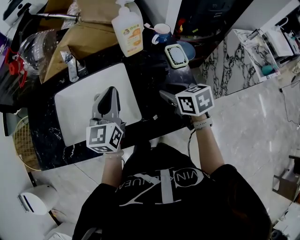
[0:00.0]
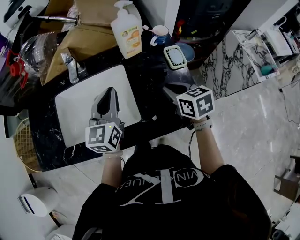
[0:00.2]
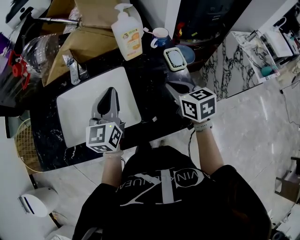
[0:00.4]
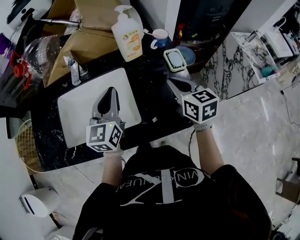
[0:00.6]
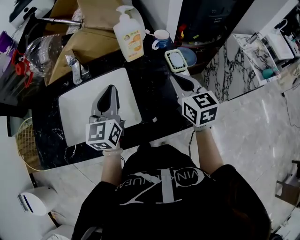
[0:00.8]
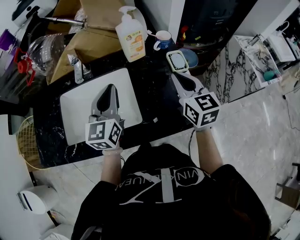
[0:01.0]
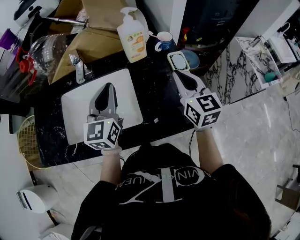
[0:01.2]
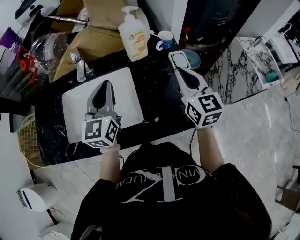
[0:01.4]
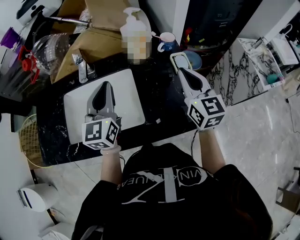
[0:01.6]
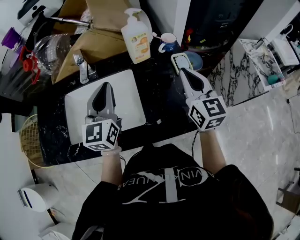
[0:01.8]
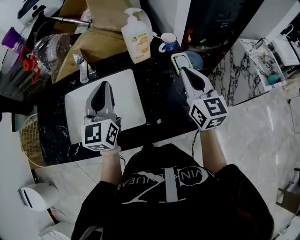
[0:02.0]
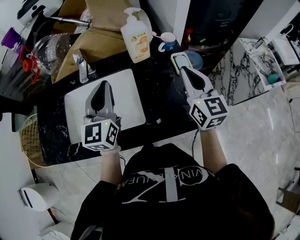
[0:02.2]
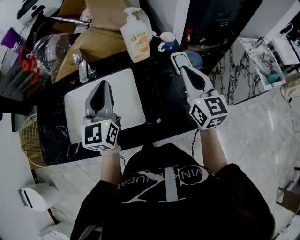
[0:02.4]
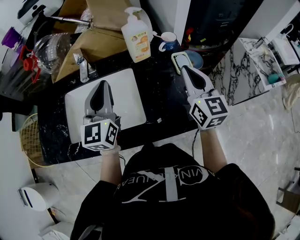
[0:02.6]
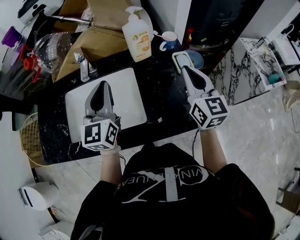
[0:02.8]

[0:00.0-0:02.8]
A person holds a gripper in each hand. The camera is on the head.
0:00.0 to 0:01.4: The right gripper heads upward, covering about 15 cm, tips its fingers upward by some 30 degrees, and closes; the left gripper goes some 5 cm upward.
0:01.4 to 0:02.8: The grippers make only small movements.

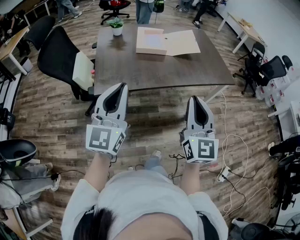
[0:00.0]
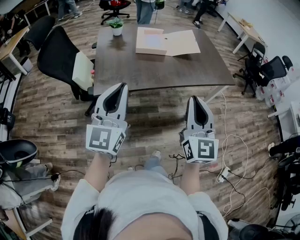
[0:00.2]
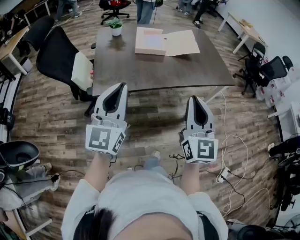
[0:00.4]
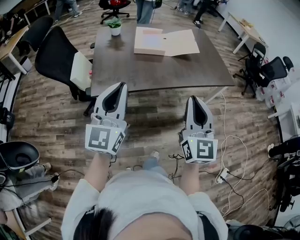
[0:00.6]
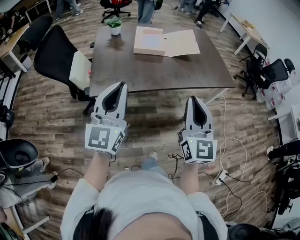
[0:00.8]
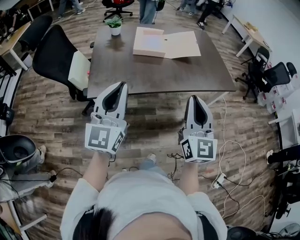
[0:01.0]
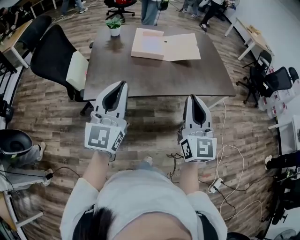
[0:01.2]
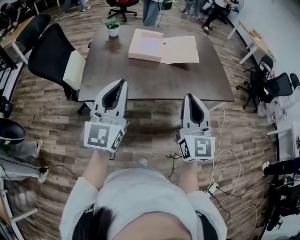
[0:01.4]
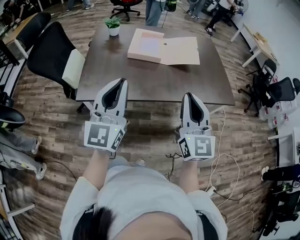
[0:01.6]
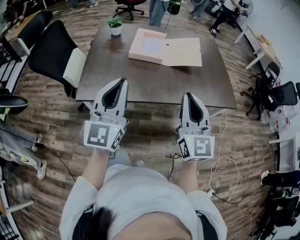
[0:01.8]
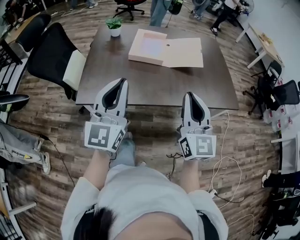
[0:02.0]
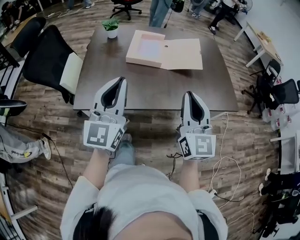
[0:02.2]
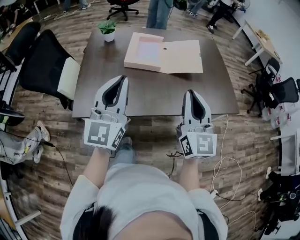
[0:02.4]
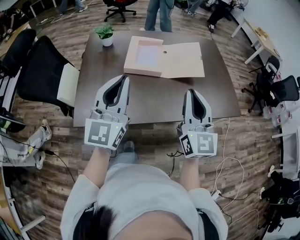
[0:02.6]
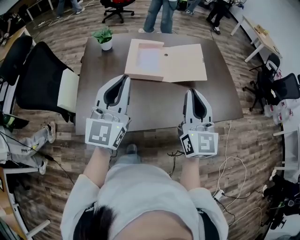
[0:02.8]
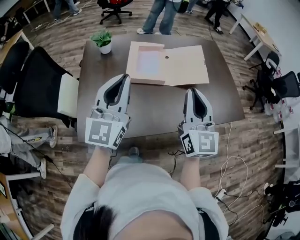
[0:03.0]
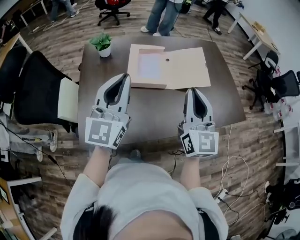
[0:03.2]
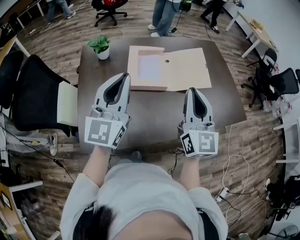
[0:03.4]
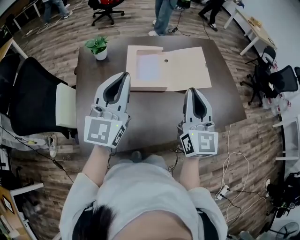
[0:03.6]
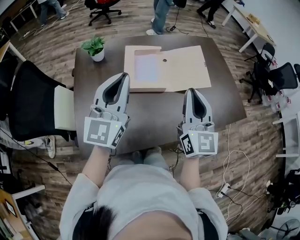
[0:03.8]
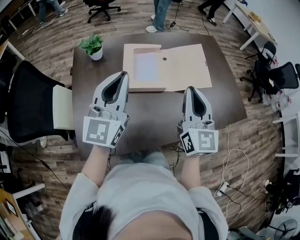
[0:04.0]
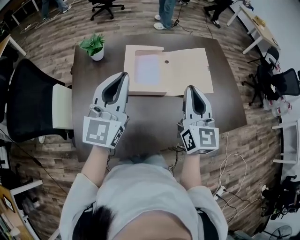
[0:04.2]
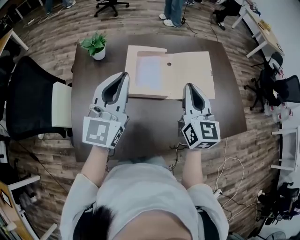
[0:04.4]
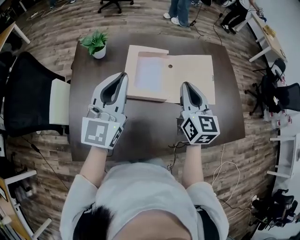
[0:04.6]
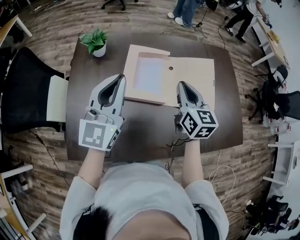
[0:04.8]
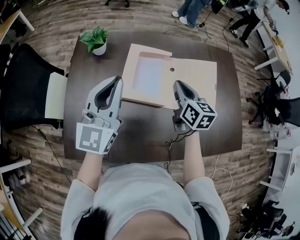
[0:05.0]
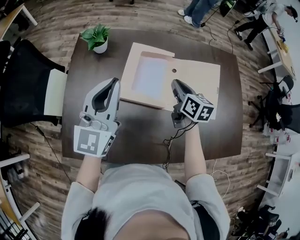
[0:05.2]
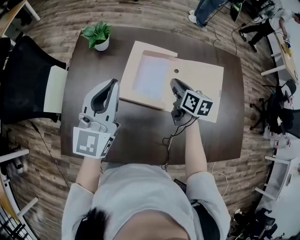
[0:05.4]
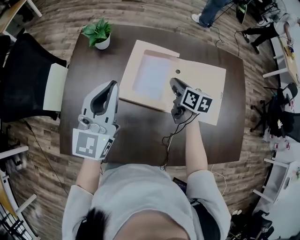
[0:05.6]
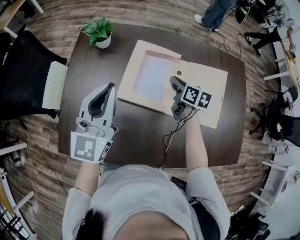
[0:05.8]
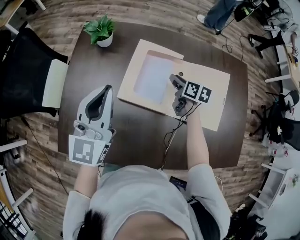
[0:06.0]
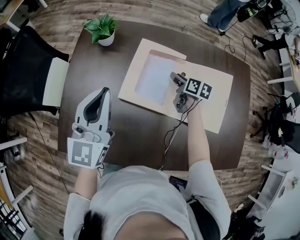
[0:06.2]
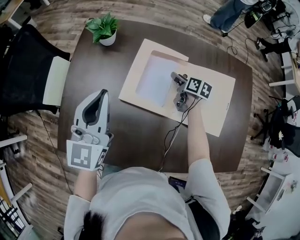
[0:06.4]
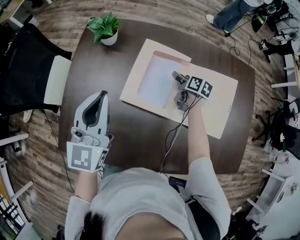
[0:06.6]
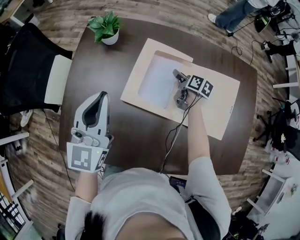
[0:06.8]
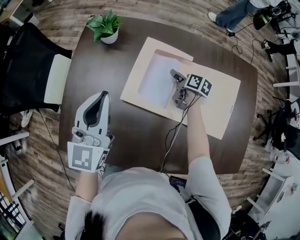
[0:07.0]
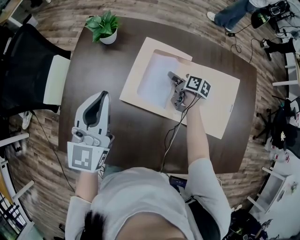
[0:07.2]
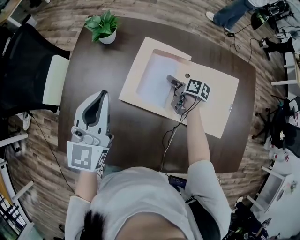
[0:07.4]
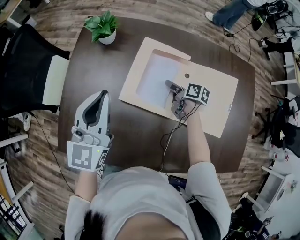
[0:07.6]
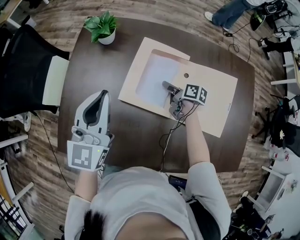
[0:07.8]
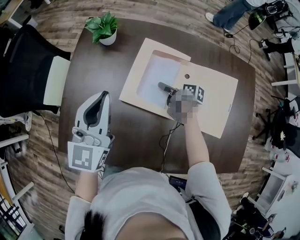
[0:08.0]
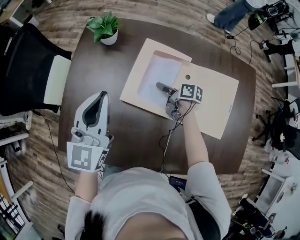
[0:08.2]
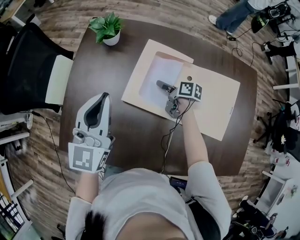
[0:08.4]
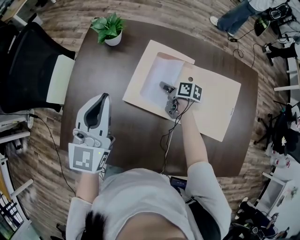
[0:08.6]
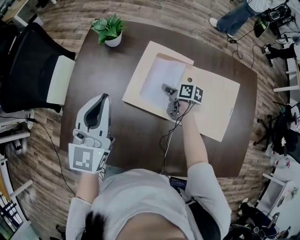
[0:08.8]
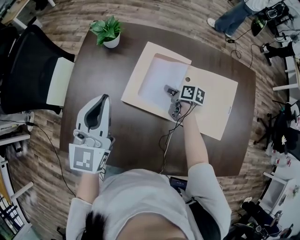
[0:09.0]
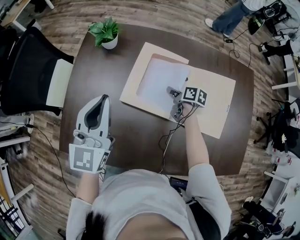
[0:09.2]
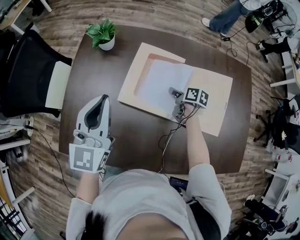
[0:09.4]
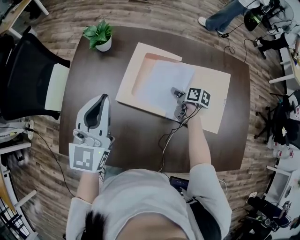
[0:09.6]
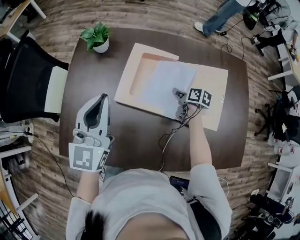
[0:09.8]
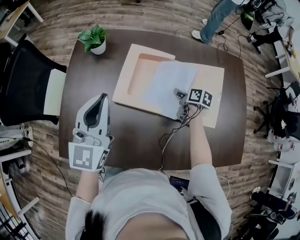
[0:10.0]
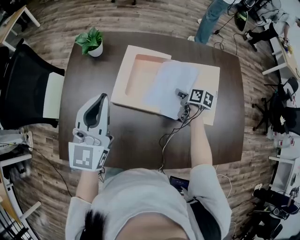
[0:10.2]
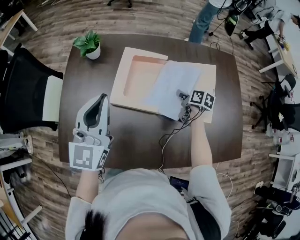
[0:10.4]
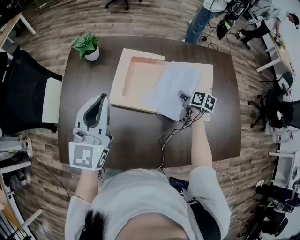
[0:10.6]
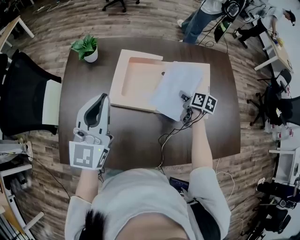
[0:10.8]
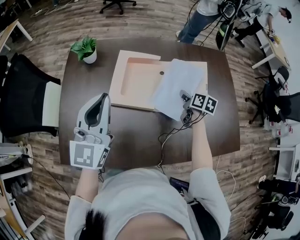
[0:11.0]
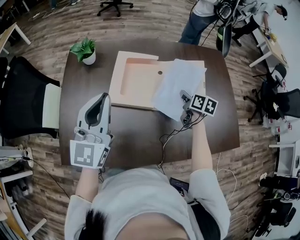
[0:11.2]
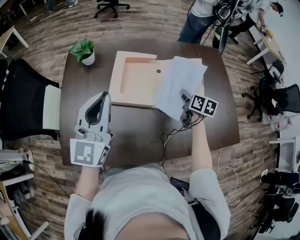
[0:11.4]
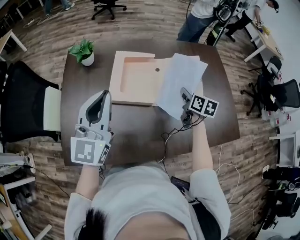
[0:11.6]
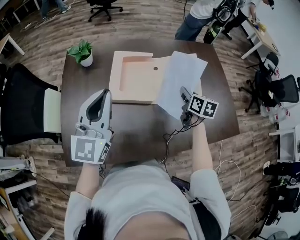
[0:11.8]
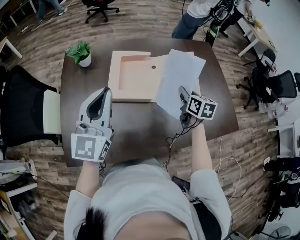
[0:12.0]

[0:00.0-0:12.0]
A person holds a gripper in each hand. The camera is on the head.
0:00.0 to 0:01.6: The grippers both shift forward and to the right by some 20 cm.
0:01.6 to 0:03.0: The grippers both shift forward by some 25 cm.
0:03.0 to 0:04.4: Both grippers move forward, roughly 15 cm.
0:04.4 to 0:06.0: The right gripper shifts approximately 25 cm downward, and tips its fingers downward by roughly 30 degrees. The left gripper heads downward, covering approximately 5 cm.
0:06.0 to 0:07.6: The right gripper heads downward, covering about 5 cm, and changes its angle by some 20 degrees.
0:07.6 to 0:09.0: The right gripper closes.
0:09.0 to 0:10.4: The left gripper moves about 5 cm. Meanwhile the right gripper shifts about 15 cm to the right and backward.
0:10.4 to 0:12.0: The right gripper shifts some 20 cm upward and backward, and swivels roughly 30 degrees. The left gripper goes roughly 5 cm backward.

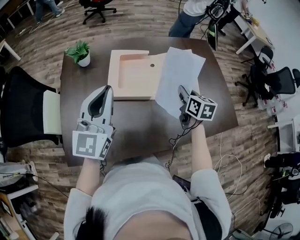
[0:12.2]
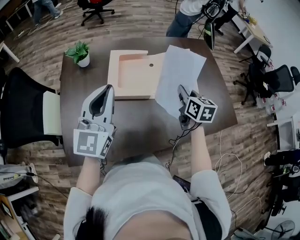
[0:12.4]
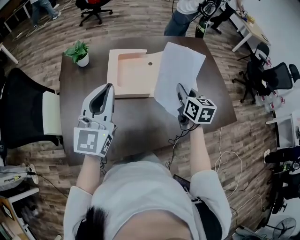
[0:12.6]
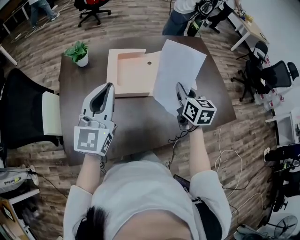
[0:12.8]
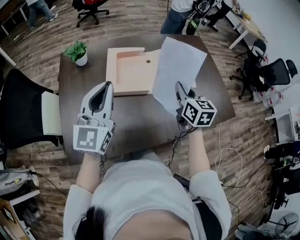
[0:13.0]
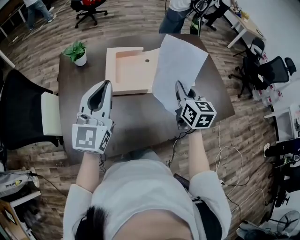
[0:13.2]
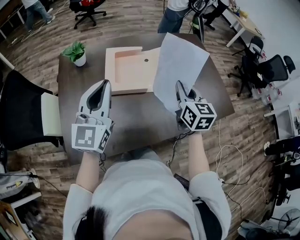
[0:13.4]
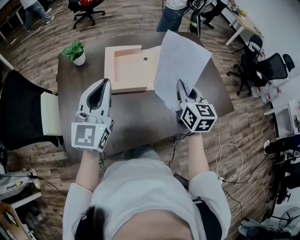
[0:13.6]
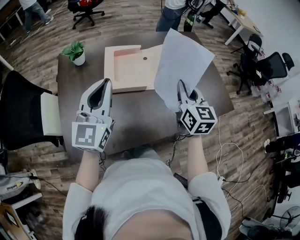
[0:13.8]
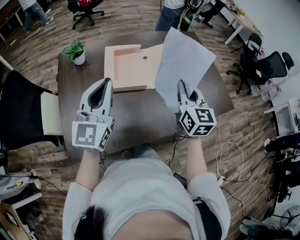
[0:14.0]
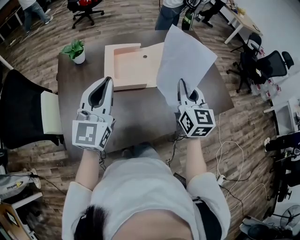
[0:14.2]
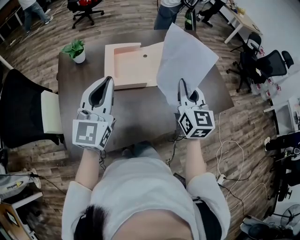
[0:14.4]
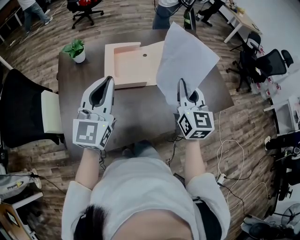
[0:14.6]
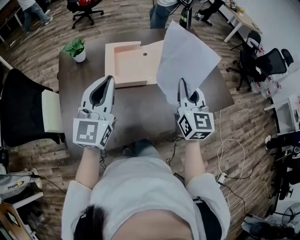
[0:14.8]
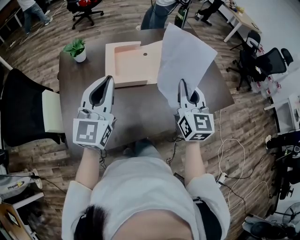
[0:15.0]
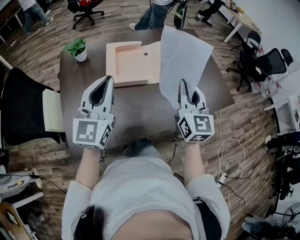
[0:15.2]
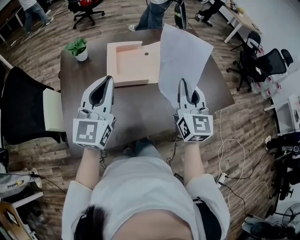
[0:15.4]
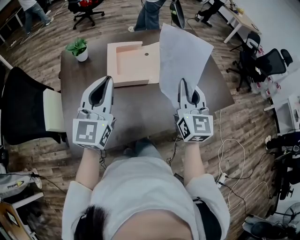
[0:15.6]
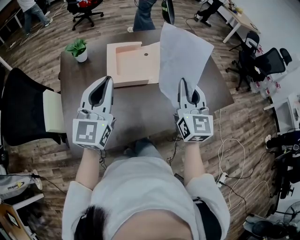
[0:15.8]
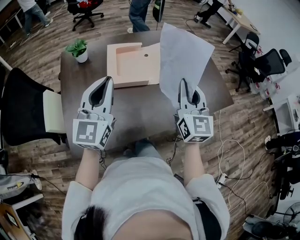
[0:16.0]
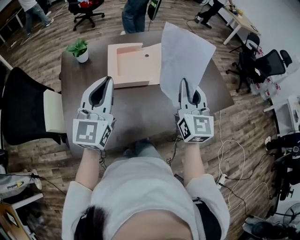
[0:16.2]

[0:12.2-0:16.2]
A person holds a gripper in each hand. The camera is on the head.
0:12.2 to 0:13.6: The right gripper heads backward and upward, covering about 15 cm, and turns by some 20 degrees.
0:13.6 to 0:14.8: The right gripper shifts about 5 cm backward.
0:14.8 to 0:16.2: The grippers make only small movements.

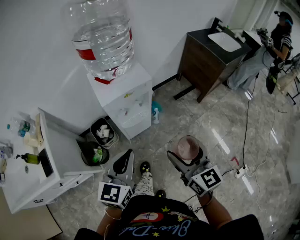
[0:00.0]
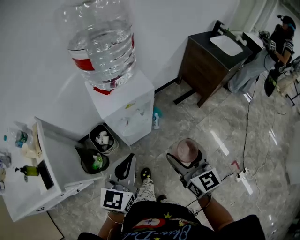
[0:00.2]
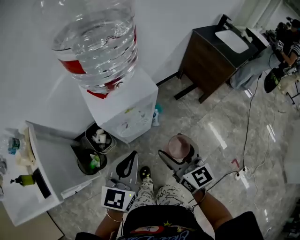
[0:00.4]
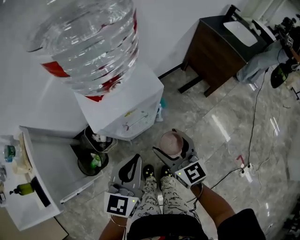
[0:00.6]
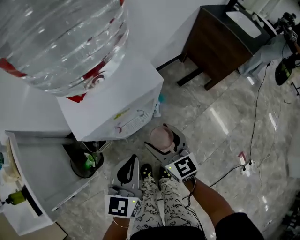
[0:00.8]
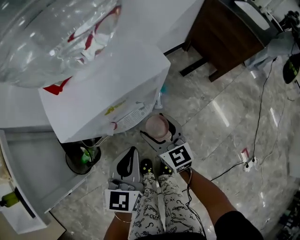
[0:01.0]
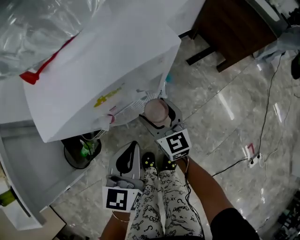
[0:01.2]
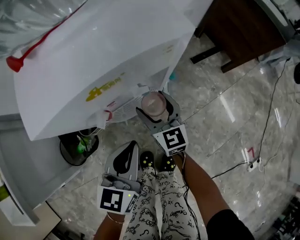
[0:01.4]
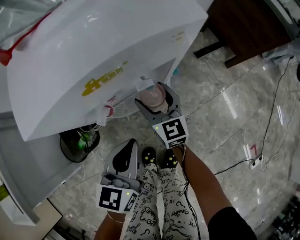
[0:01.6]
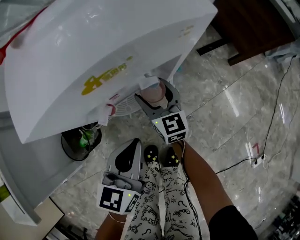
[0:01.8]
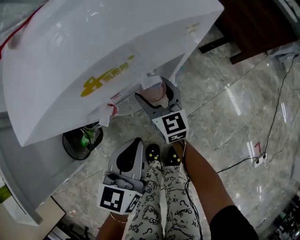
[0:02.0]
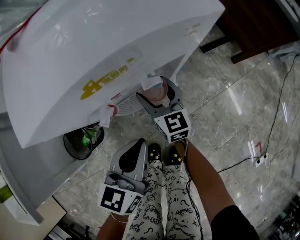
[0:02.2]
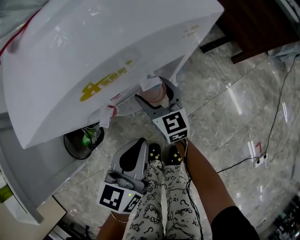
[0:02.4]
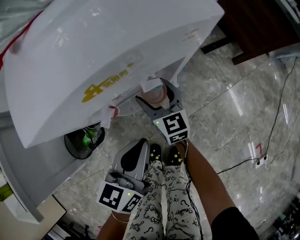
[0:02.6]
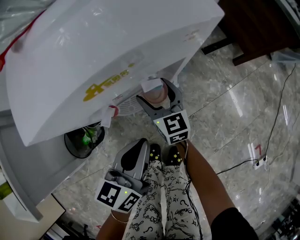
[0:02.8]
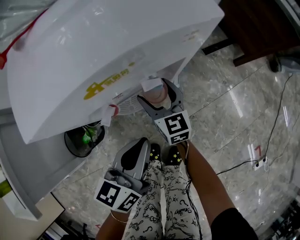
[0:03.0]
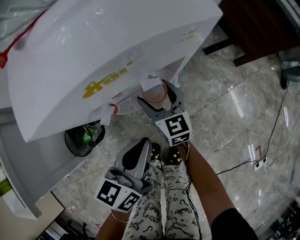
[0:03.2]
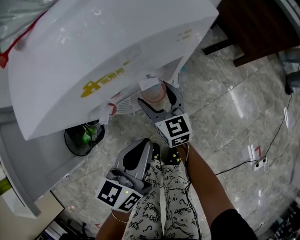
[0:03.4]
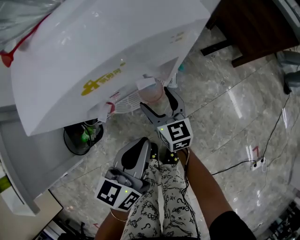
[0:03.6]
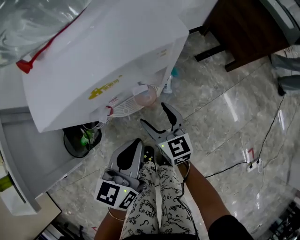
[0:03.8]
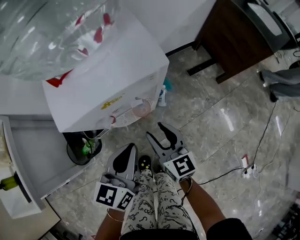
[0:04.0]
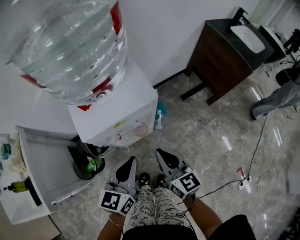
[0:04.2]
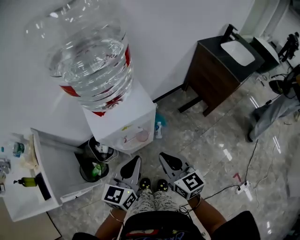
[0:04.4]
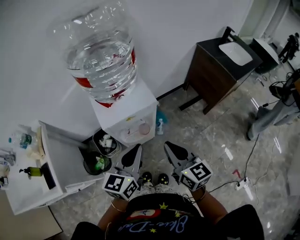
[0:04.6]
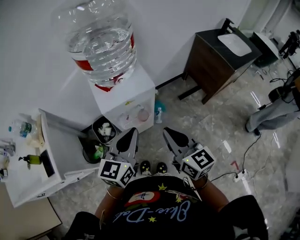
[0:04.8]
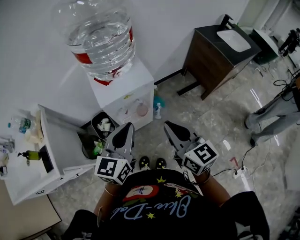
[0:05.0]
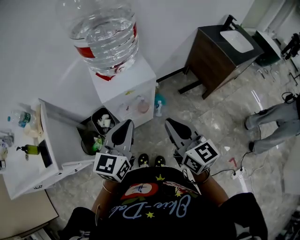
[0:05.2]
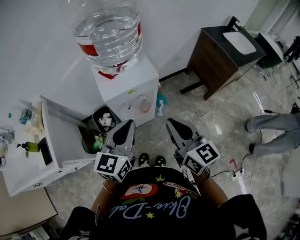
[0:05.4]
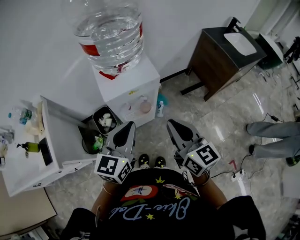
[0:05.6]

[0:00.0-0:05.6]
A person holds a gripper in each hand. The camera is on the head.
0:00.0 to 0:01.4: Both grippers move downward and forward, approximately 40 cm.
0:01.4 to 0:02.8: The right gripper ends up about 5 cm from where it was.
0:02.8 to 0:04.2: The right gripper travels upward and backward by some 30 cm, and closes its fingers. Meanwhile the left gripper is displaced upward by approximately 20 cm.
0:04.2 to 0:05.6: The two grippers go about 20 cm upward.
